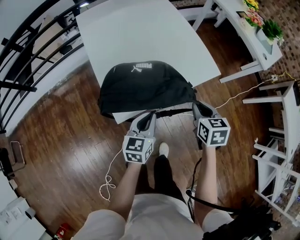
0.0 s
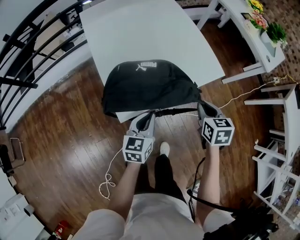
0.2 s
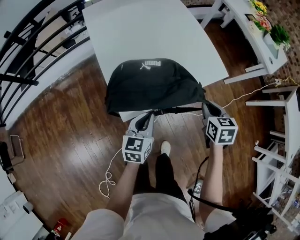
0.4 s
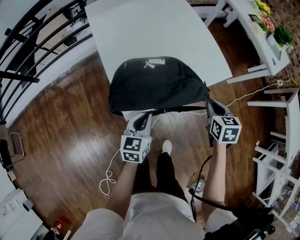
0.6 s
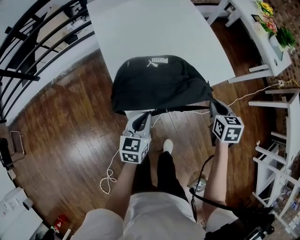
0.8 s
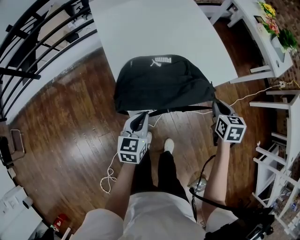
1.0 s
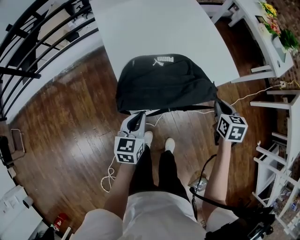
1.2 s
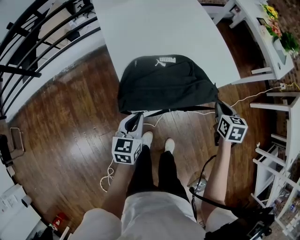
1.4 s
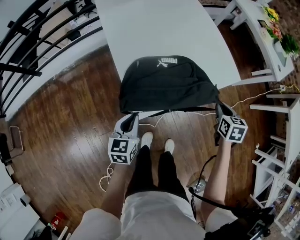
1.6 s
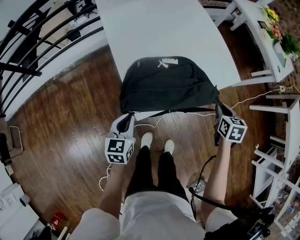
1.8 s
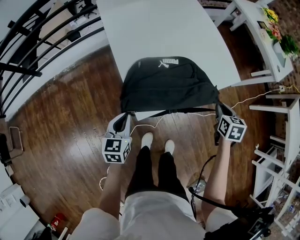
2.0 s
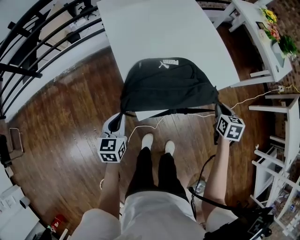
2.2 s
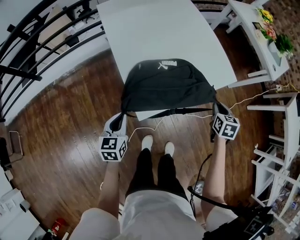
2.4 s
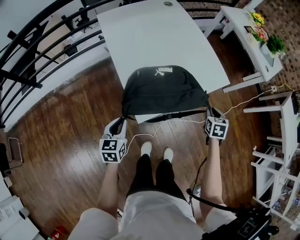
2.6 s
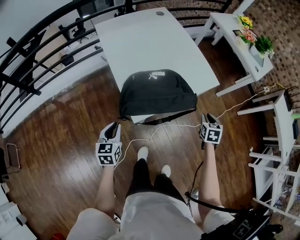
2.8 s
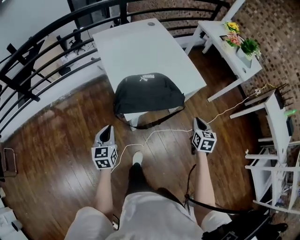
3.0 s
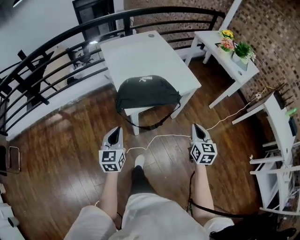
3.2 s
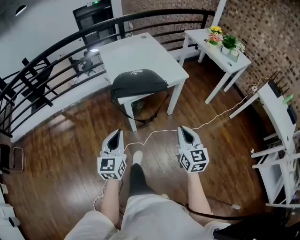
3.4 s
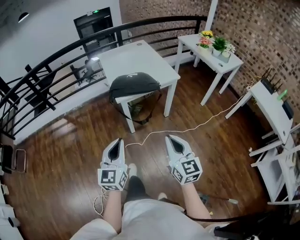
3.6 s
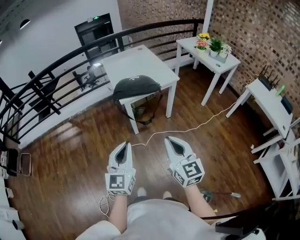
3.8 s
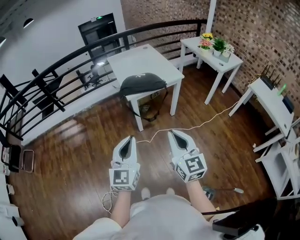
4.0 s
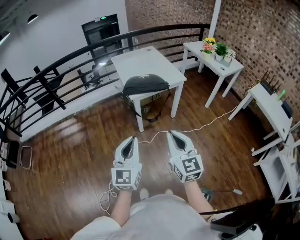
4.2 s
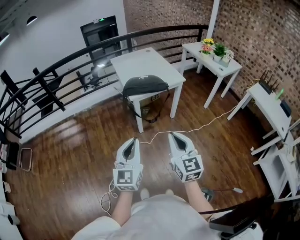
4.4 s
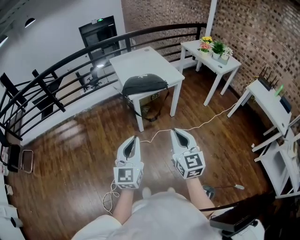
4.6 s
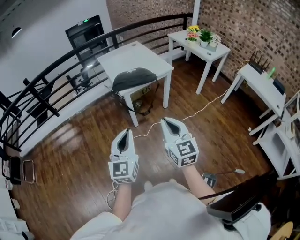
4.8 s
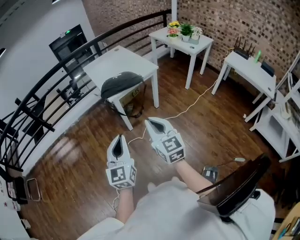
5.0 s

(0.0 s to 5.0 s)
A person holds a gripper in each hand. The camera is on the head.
0.0 s - 1.6 s: The left gripper shifts approximately 15 cm to the left, while the right gripper changes place by about 5 cm.
1.6 s - 3.4 s: The two grippers go roughly 40 cm backward and upward. The left gripper turns by roughly 30 degrees; the right gripper tilts its fingers approximately 40 degrees upward.
3.4 s - 5.0 s: The right gripper goes roughly 30 cm backward, upward and to the left; the left gripper moves backward and upward, approximately 30 cm.

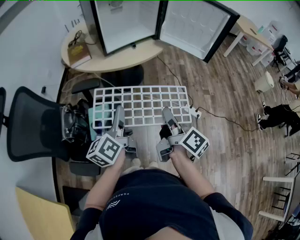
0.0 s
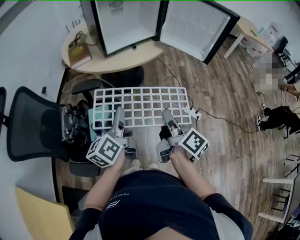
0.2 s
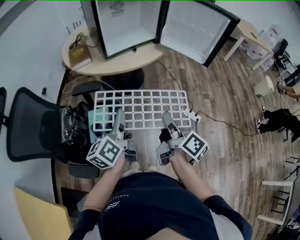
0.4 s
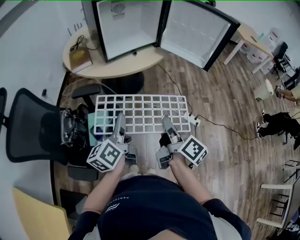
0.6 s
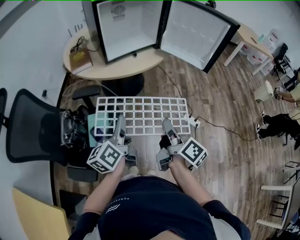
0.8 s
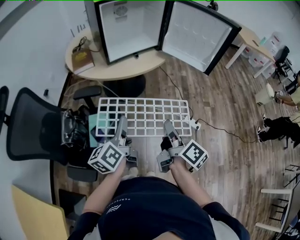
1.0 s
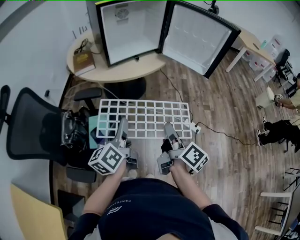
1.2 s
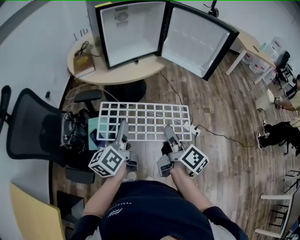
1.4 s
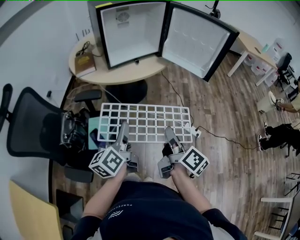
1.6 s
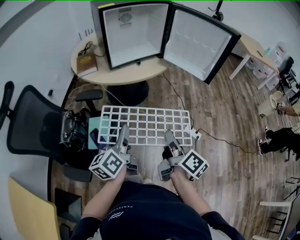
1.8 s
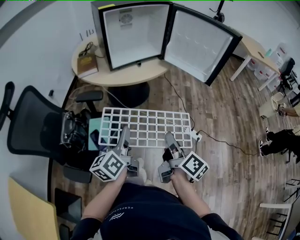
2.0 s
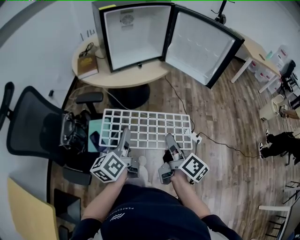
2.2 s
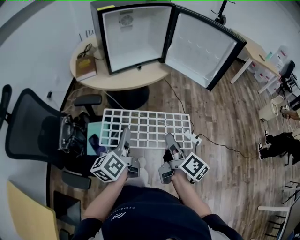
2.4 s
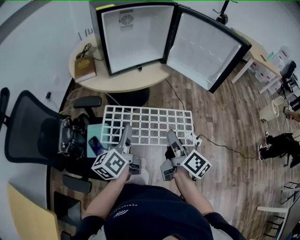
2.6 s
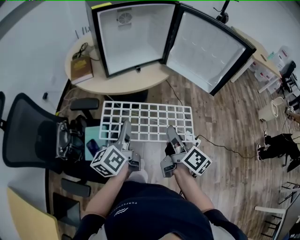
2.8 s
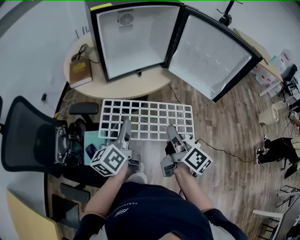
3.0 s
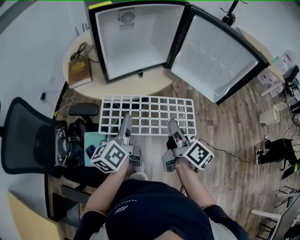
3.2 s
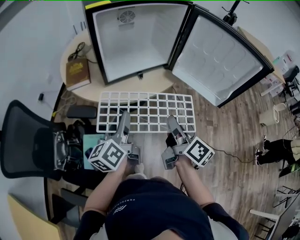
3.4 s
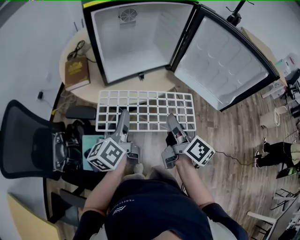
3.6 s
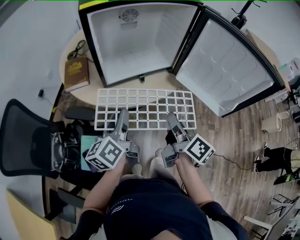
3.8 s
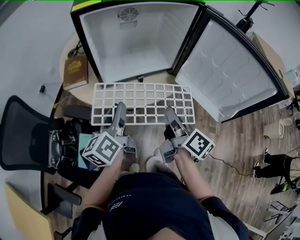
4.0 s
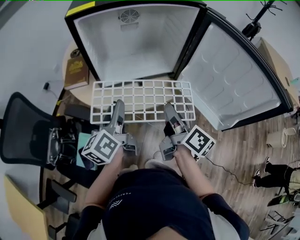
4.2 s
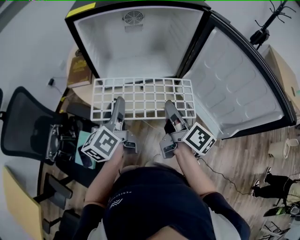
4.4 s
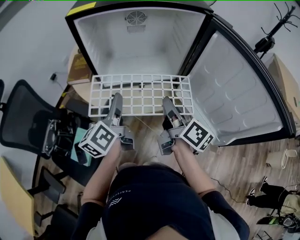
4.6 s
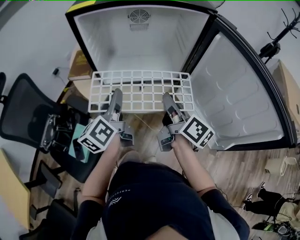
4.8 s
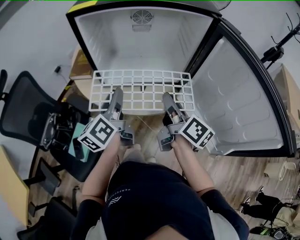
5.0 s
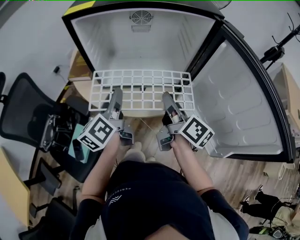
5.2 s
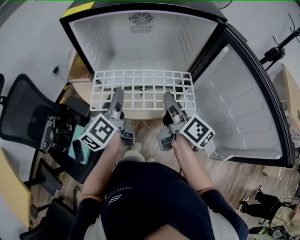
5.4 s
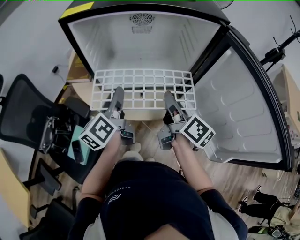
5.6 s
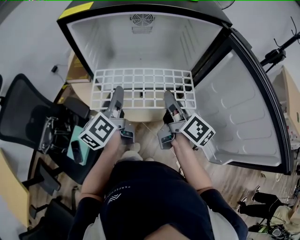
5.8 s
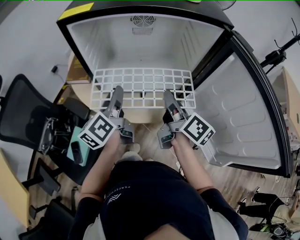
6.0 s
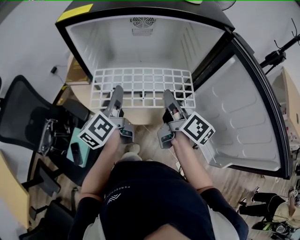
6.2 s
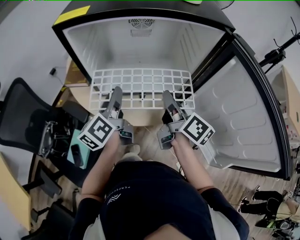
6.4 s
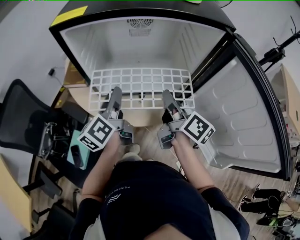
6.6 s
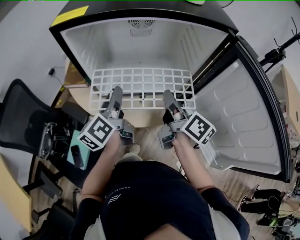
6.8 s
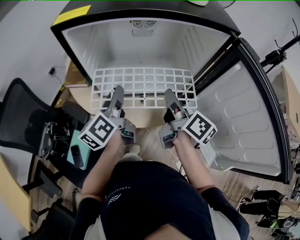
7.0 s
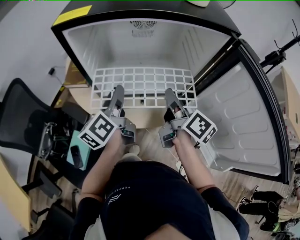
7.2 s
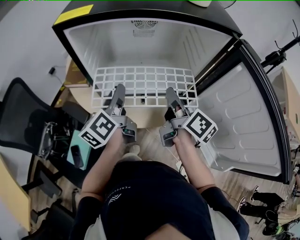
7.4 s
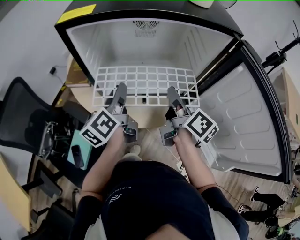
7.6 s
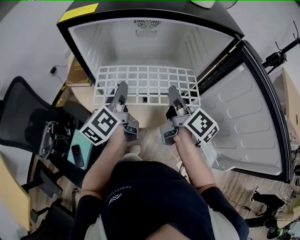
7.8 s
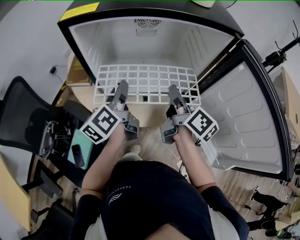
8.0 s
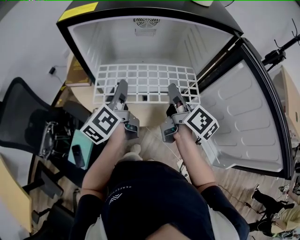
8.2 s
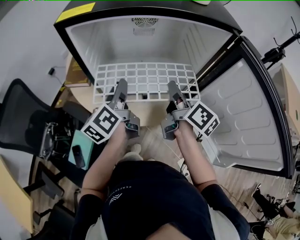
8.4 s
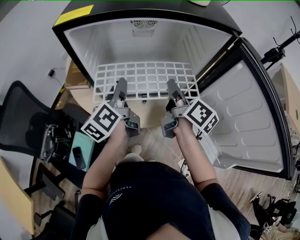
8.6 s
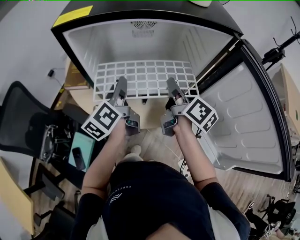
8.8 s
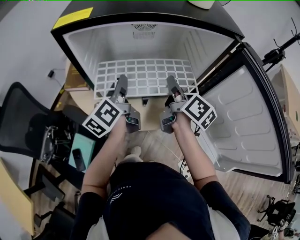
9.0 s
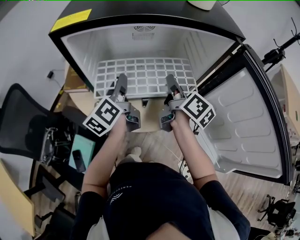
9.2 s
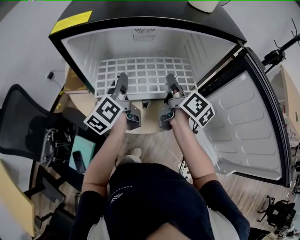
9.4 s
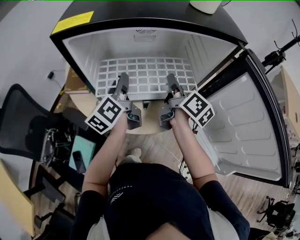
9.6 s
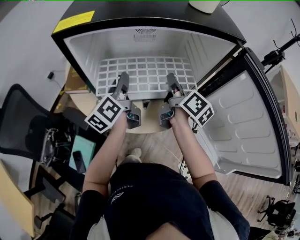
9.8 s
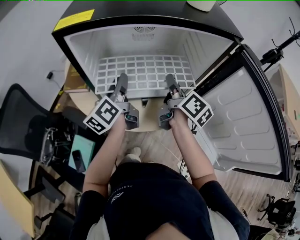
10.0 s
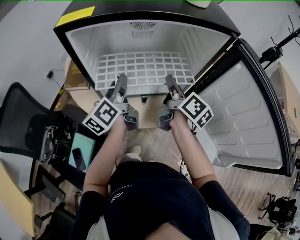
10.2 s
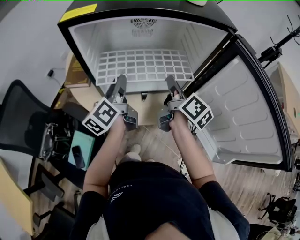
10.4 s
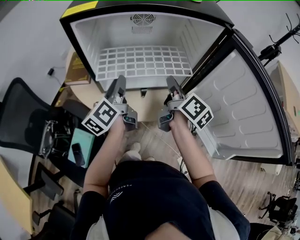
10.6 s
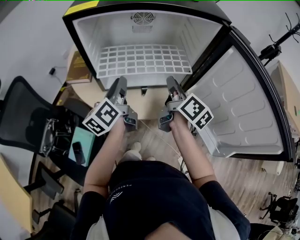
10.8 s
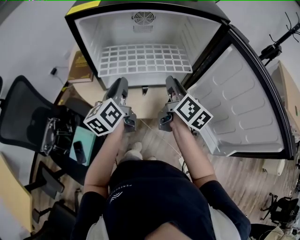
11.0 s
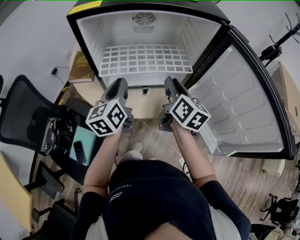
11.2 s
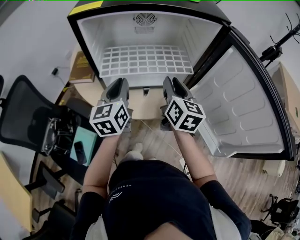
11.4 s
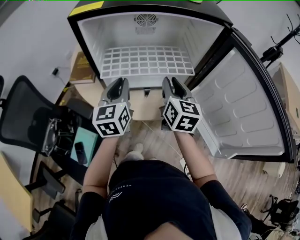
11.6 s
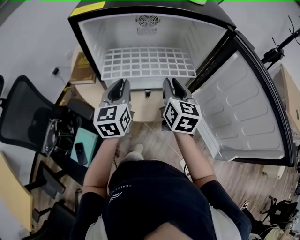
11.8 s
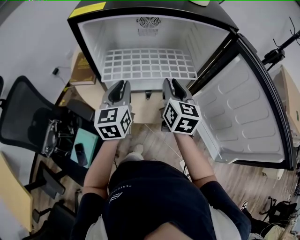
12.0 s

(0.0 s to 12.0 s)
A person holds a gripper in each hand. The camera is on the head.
0.0 s - 1.6 s: The grippers stay close to where they were, moving slightly.
1.6 s - 3.0 s: Both grippers move forward, roughly 15 cm.
3.0 s - 4.4 s: The grippers both shift forward by roughly 20 cm.
4.4 s - 6.0 s: Both grippers move forward, about 10 cm.
6.0 s - 7.6 s: The grippers move only a little.
7.6 s - 9.0 s: The right gripper moves forward, roughly 5 cm.
9.0 s - 10.4 s: There are only small adjustments of the grippers.
10.4 s - 12.0 s: The right gripper rolls counterclockwise, seen from behind, by approximately 40 degrees. The left gripper rotates around the line of its fingers by approximately 40 degrees, clockwise from behind.

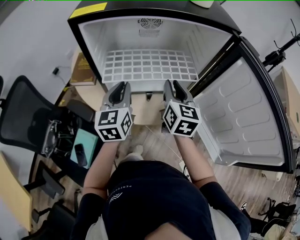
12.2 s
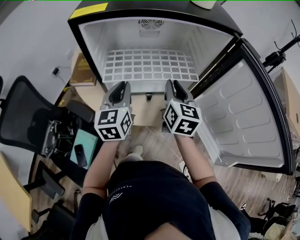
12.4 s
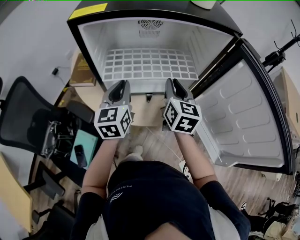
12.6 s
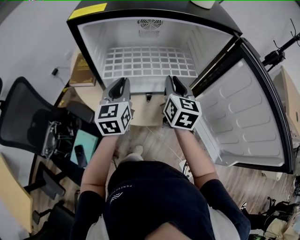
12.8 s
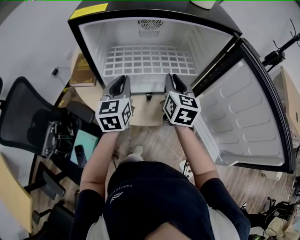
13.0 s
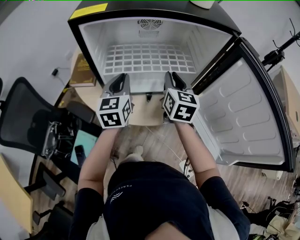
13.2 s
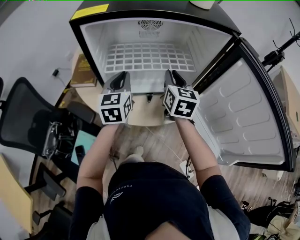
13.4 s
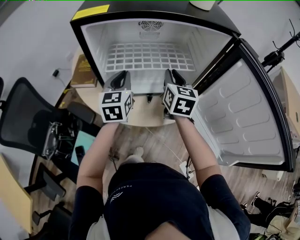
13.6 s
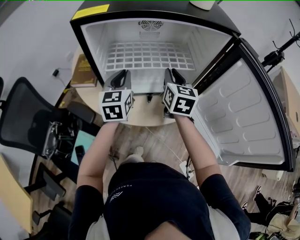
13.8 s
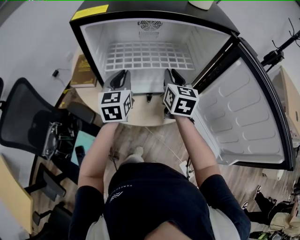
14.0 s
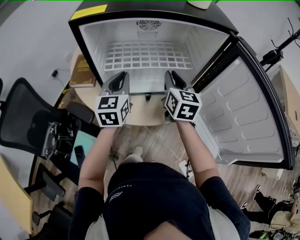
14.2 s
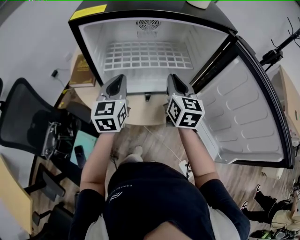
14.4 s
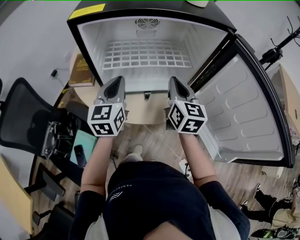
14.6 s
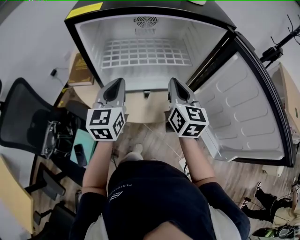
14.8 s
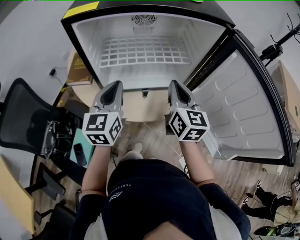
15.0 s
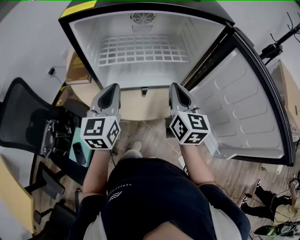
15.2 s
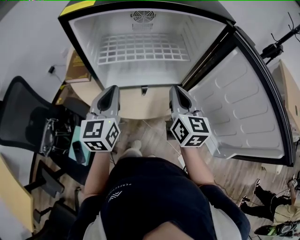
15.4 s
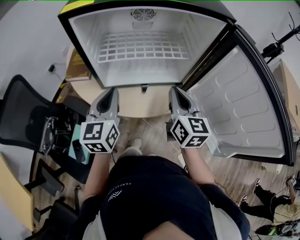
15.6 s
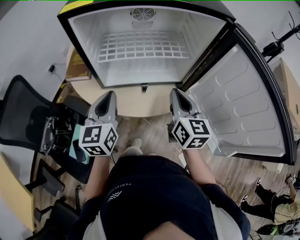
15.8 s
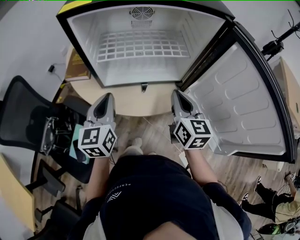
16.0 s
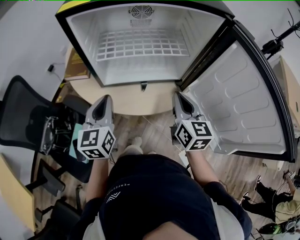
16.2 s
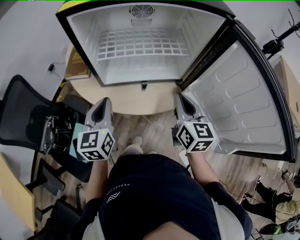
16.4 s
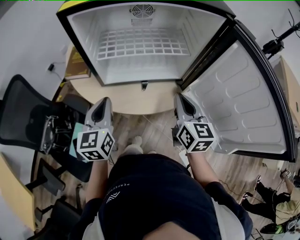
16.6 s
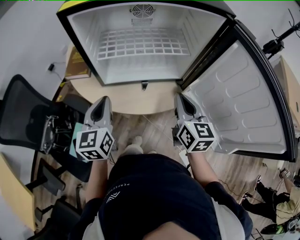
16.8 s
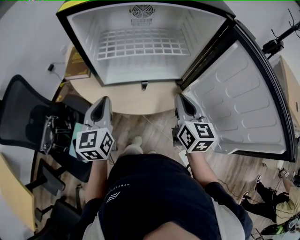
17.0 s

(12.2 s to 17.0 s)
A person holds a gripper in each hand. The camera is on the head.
12.2 s - 13.8 s: The two grippers go about 5 cm forward.
13.8 s - 15.4 s: Both grippers travel together backward, roughly 10 cm.
15.4 s - 17.0 s: The left gripper shifts by roughly 5 cm.

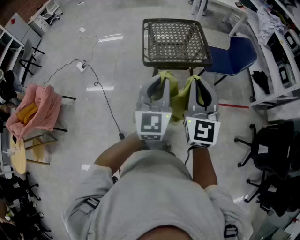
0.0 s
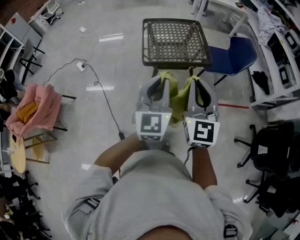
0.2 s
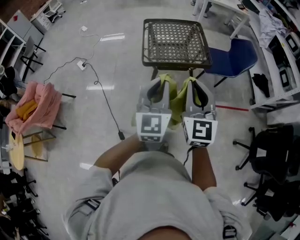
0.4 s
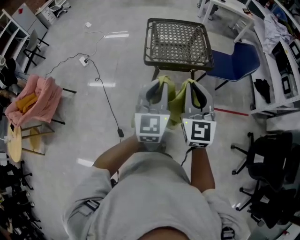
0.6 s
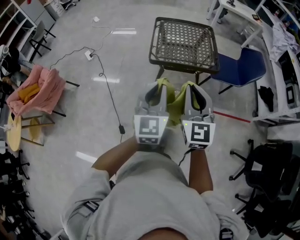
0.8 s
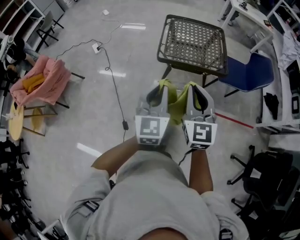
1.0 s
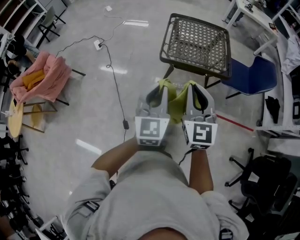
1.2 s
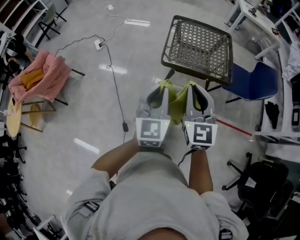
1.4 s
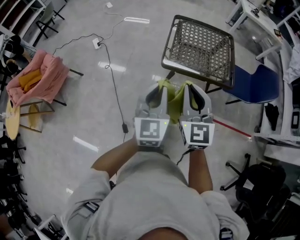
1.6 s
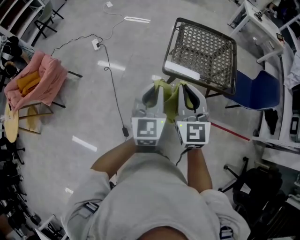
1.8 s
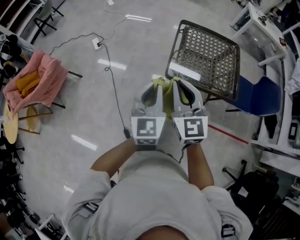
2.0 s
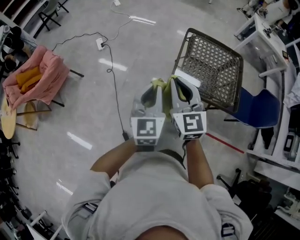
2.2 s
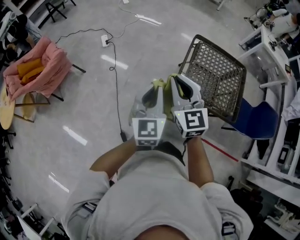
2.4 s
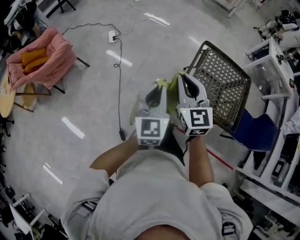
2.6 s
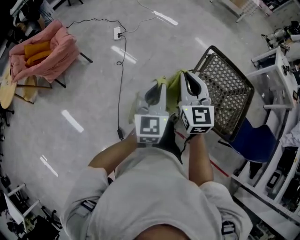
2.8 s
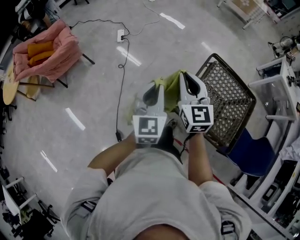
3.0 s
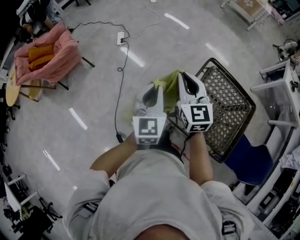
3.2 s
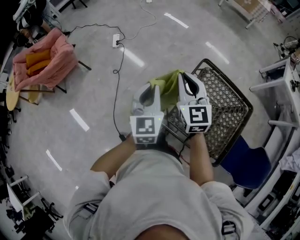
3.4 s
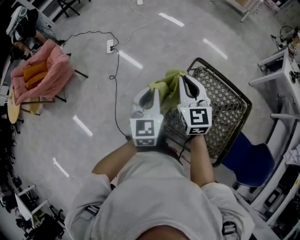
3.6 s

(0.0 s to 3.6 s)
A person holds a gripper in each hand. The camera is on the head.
0.0 s - 1.8 s: Both grippers move forward, to the left and downward, roughly 20 cm. The left gripper changes its angle by some 20 degrees. Meanwhile the right gripper rotates some 30 degrees.
1.8 s - 3.6 s: The right gripper moves some 50 cm, and swivels some 20 degrees; the left gripper ends up some 40 cm from where it was, and rotates about 20 degrees.
